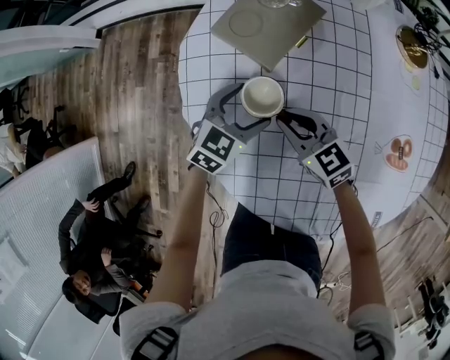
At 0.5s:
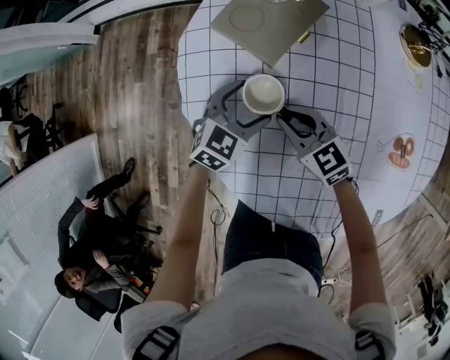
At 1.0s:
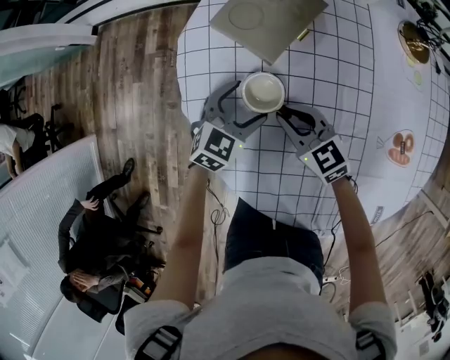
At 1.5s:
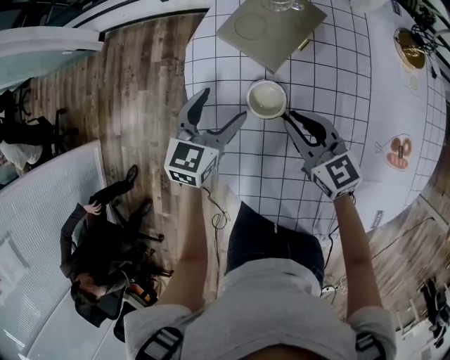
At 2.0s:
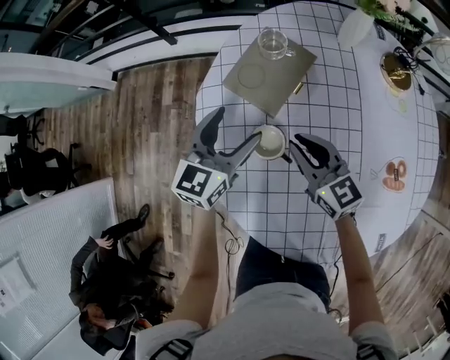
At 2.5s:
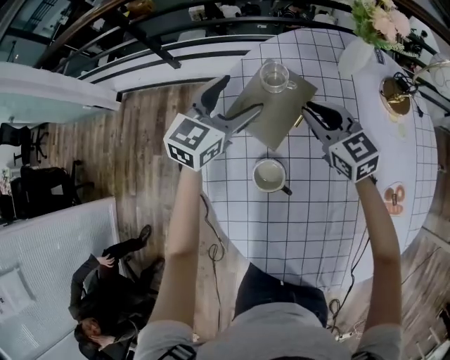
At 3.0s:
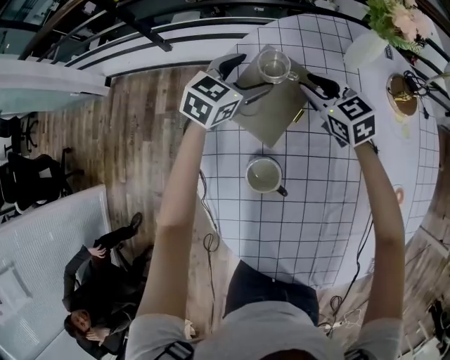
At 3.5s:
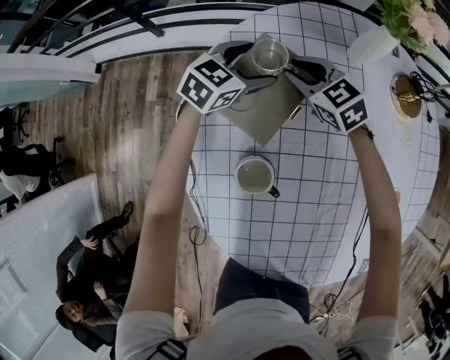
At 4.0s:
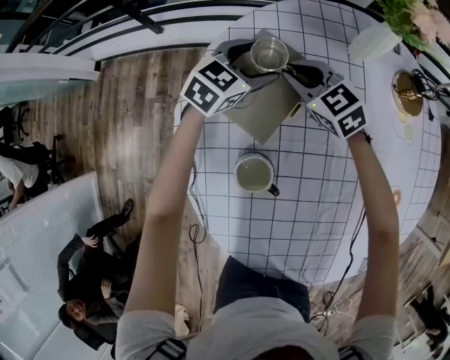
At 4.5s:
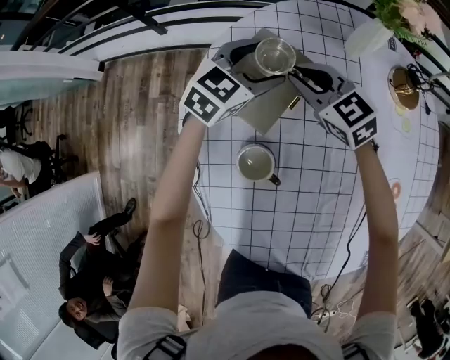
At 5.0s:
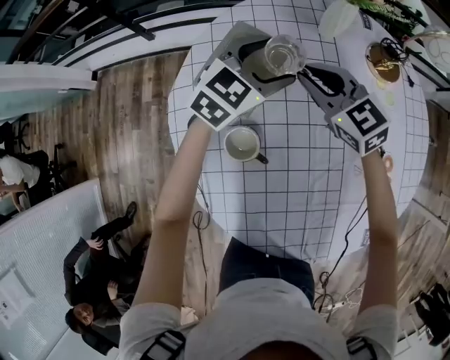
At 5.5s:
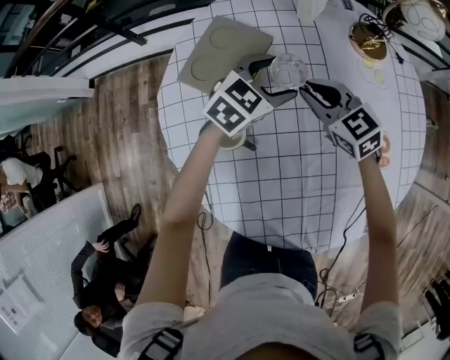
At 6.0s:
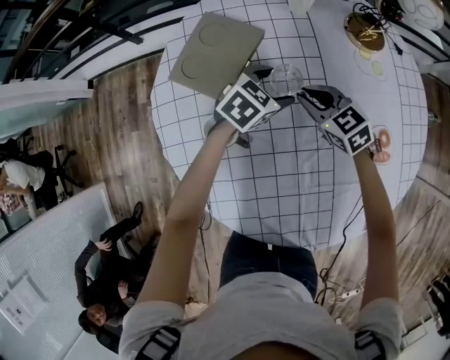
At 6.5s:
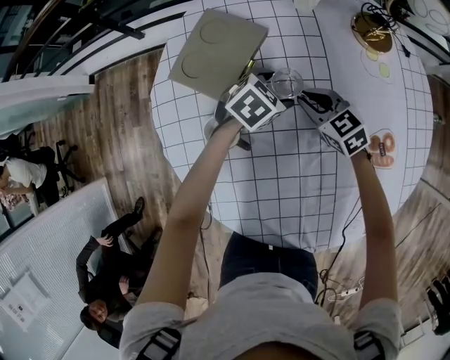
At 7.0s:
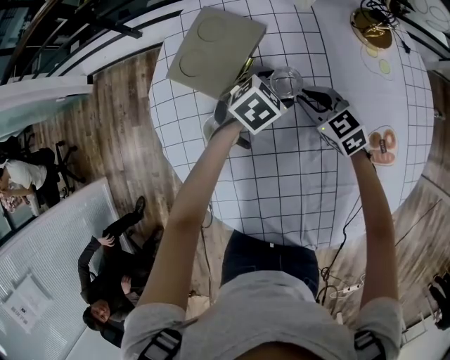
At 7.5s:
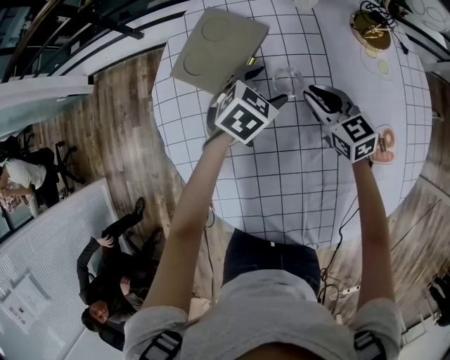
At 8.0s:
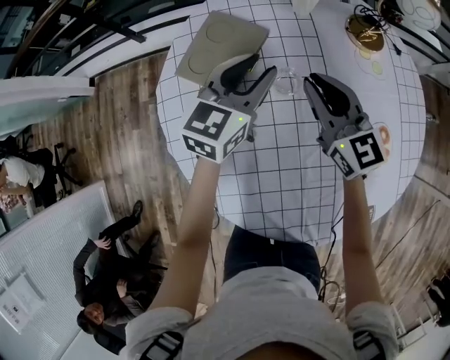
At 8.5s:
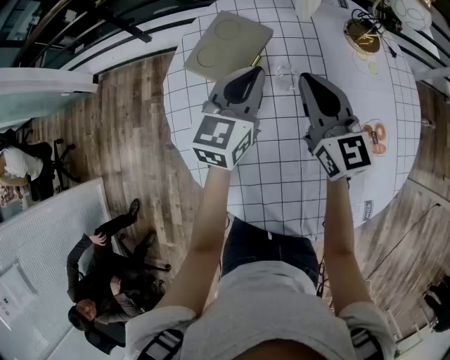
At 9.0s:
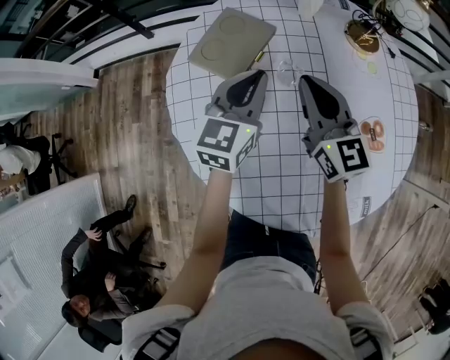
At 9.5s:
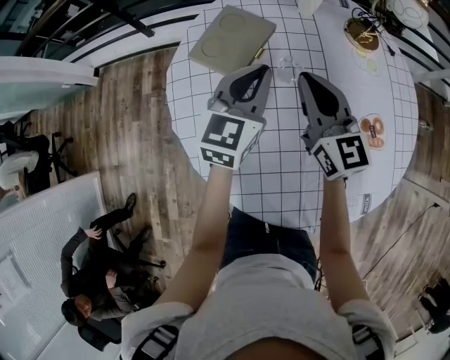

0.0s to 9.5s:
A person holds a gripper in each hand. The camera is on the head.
0.0s to 2.0s: The right gripper is displaced upward by some 10 cm. The left gripper is displaced upward and forward by some 15 cm, and turns by some 30 degrees.
2.0s to 4.0s: The right gripper is displaced forward by approximately 25 cm, and swivels roughly 30 degrees, while the left gripper is displaced forward and downward by about 25 cm, and rotates approximately 30 degrees.
4.0s to 5.5s: The left gripper travels to the right and backward by some 20 cm. Meanwhile the right gripper moves backward and to the right, roughly 20 cm.
5.5s to 7.5s: Both grippers travel together downward, approximately 5 cm.
7.5s to 9.5s: The two grippers go about 20 cm upward. The left gripper angles its fingers upward, by roughly 40 degrees, and closes; the right gripper changes its angle by approximately 30 degrees.

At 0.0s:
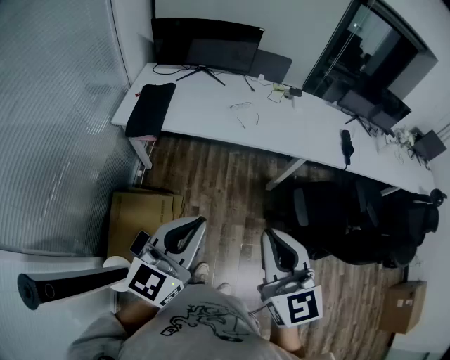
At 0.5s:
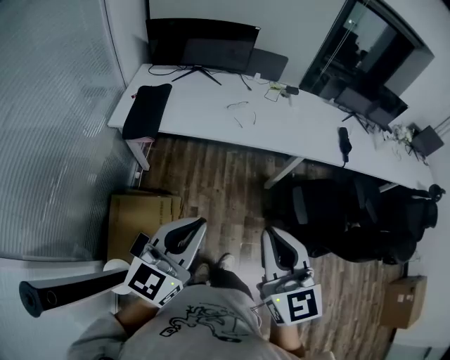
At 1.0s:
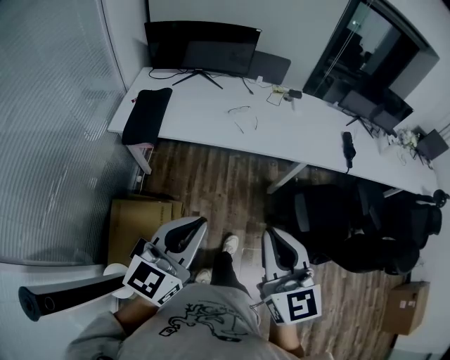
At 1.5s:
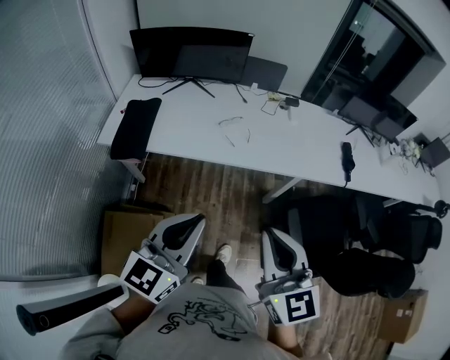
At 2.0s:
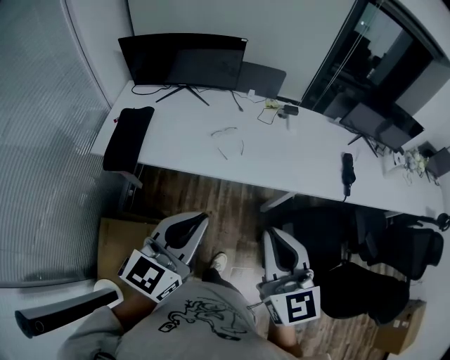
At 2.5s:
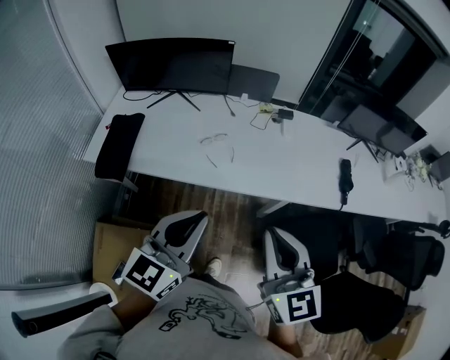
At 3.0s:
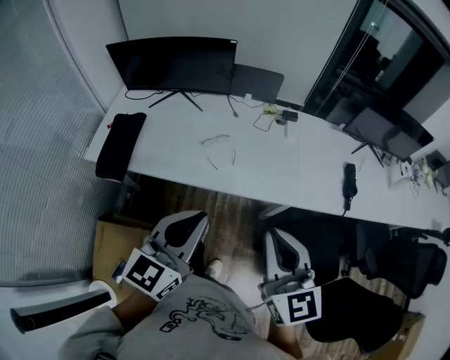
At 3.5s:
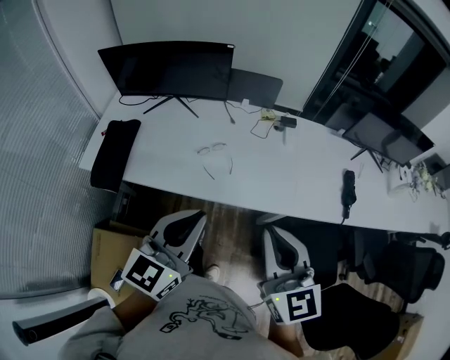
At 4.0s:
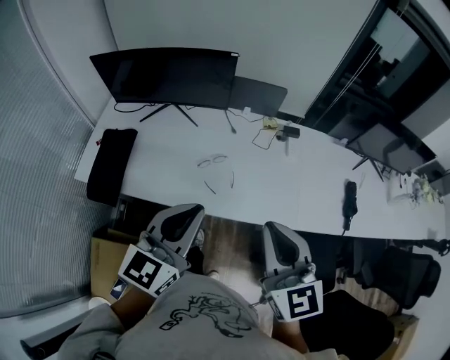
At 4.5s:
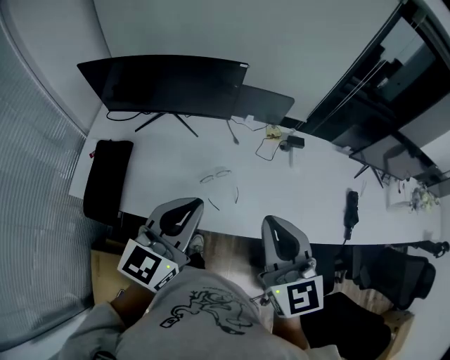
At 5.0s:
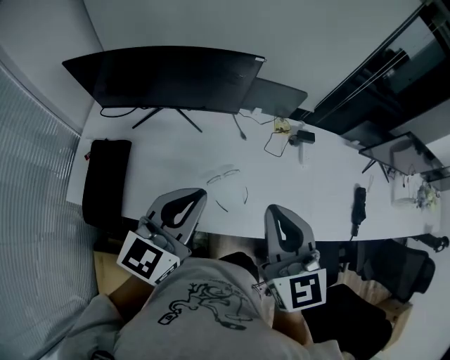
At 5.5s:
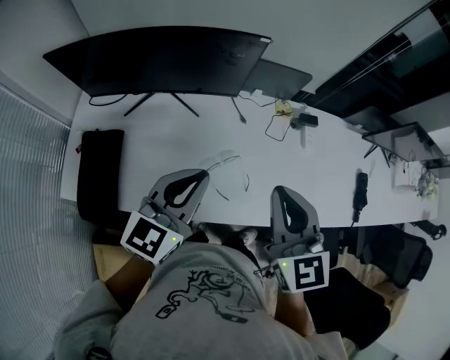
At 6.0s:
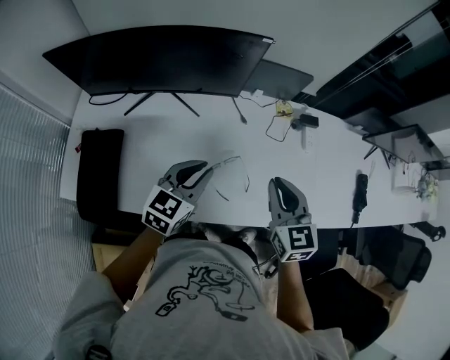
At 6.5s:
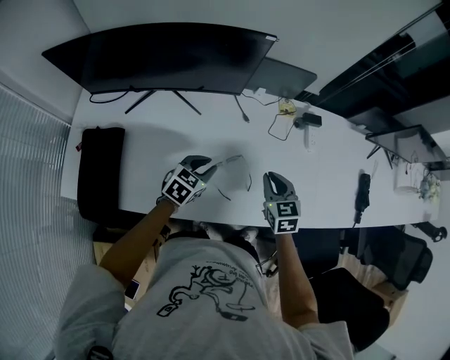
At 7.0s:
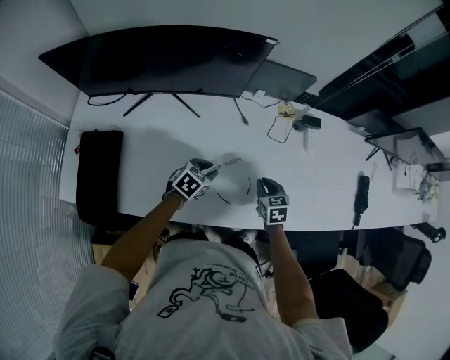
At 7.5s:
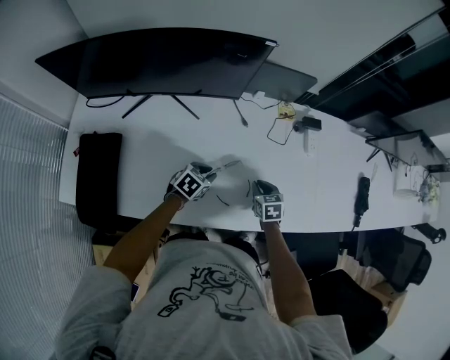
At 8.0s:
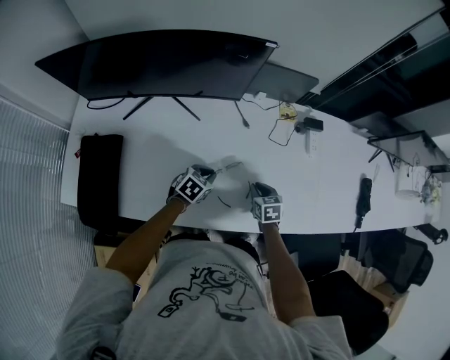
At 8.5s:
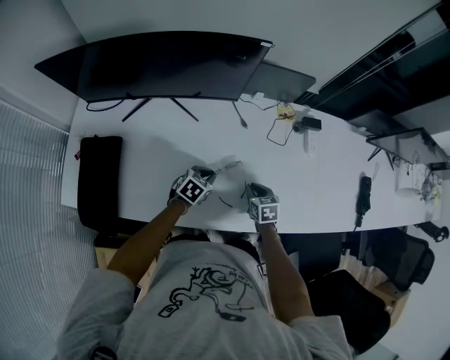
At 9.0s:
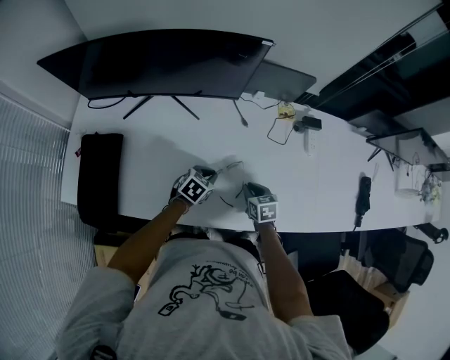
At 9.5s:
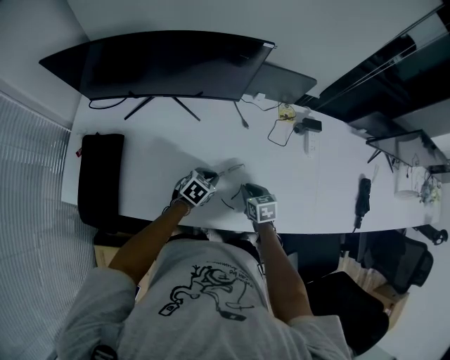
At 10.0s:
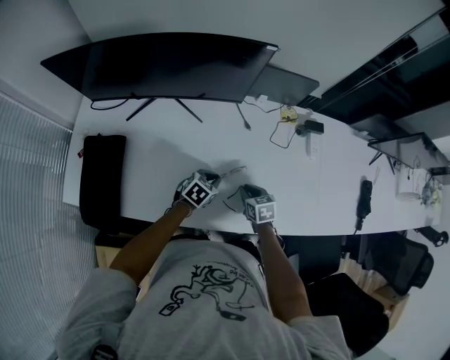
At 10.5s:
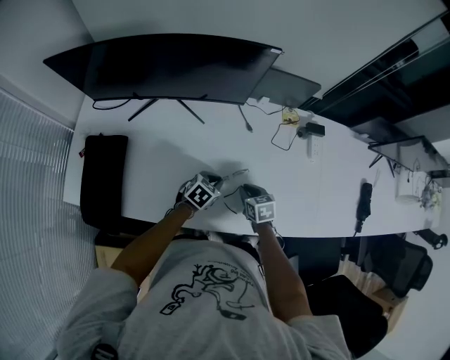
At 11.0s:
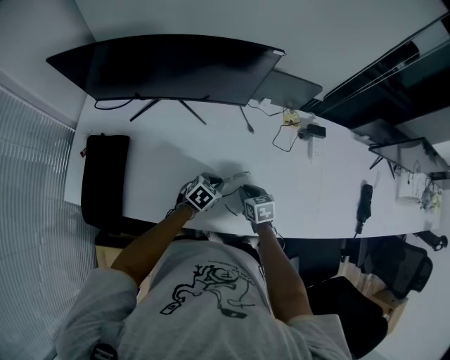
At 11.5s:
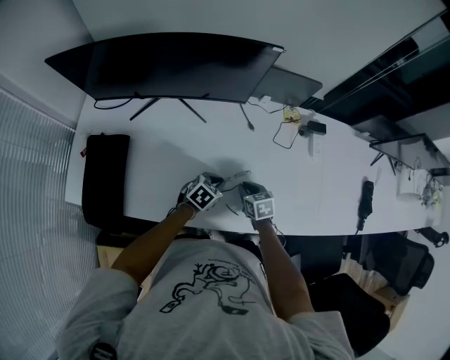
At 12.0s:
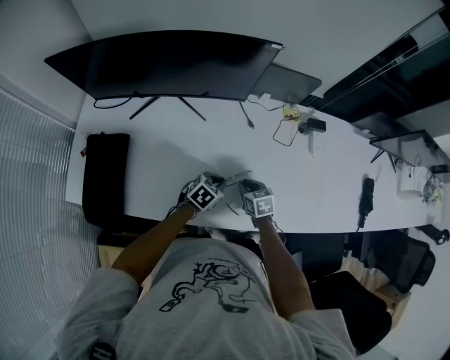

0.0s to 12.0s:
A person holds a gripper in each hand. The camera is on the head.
0.0s to 2.0s: Both grippers move forward, roughly 25 cm.
2.0s to 4.0s: The two grippers go approximately 25 cm forward.
4.0s to 6.0s: The left gripper travels forward, downward and to the left by about 35 cm, and changes its angle by some 20 degrees. The right gripper heads forward and downward, covering roughly 30 cm.
6.0s to 8.0s: Both grippers move downward, approximately 25 cm. The left gripper rotates some 30 degrees; the right gripper changes its angle by approximately 30 degrees.
8.0s to 10.0s: The right gripper moves to the left, some 5 cm.
10.0s to 12.0s: There are only small adjustments of the grippers.

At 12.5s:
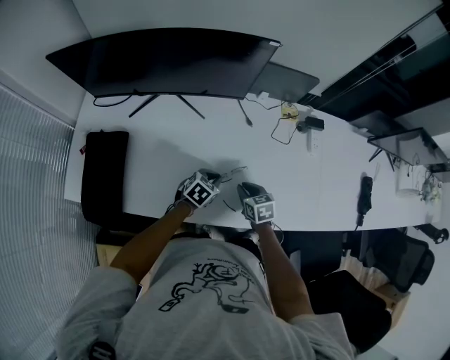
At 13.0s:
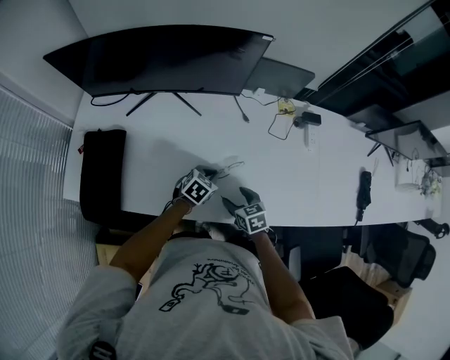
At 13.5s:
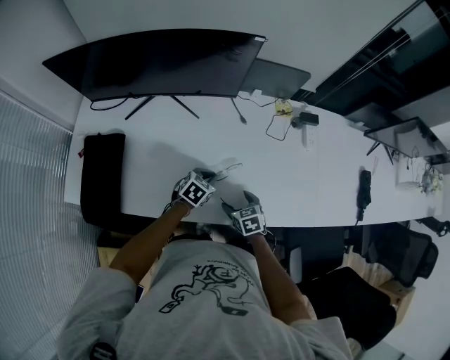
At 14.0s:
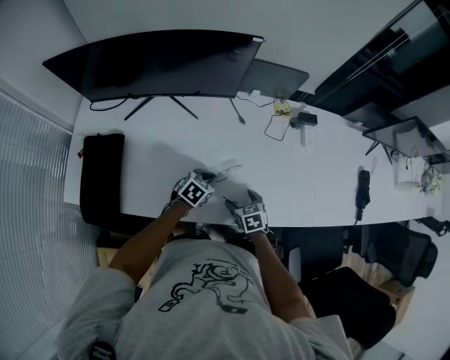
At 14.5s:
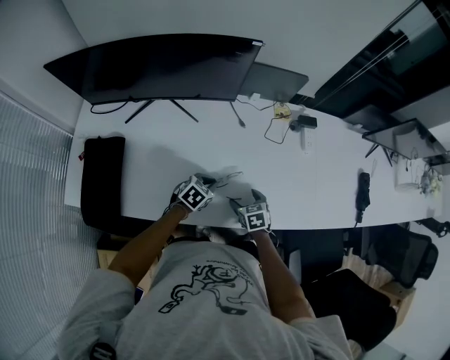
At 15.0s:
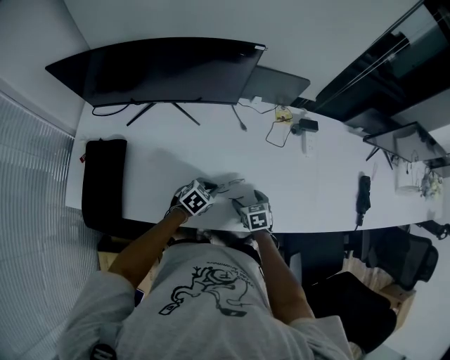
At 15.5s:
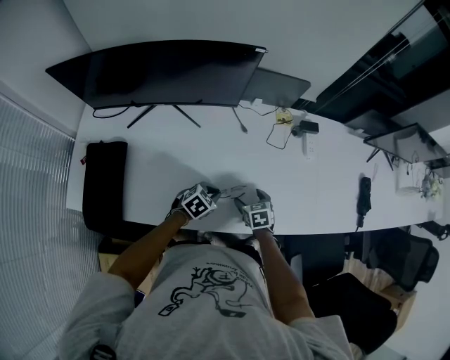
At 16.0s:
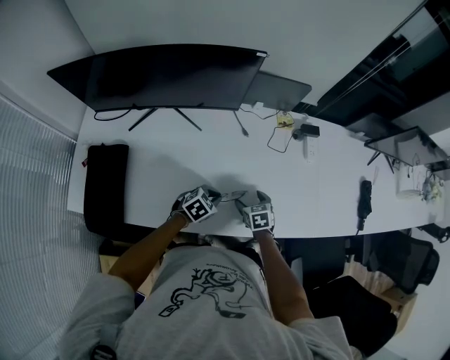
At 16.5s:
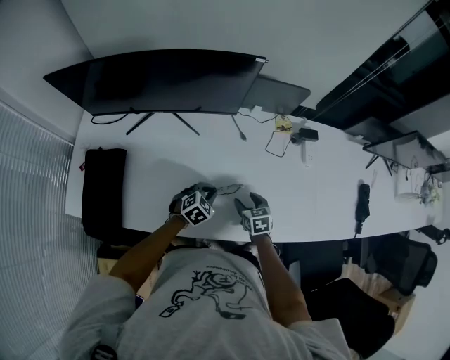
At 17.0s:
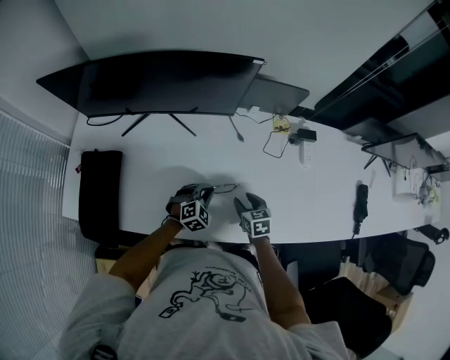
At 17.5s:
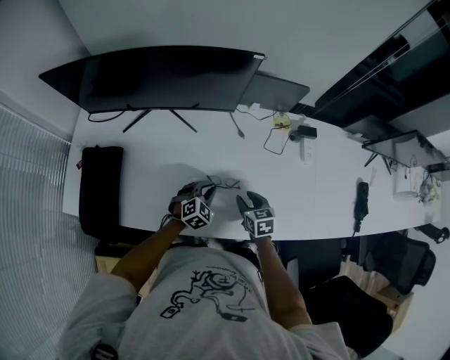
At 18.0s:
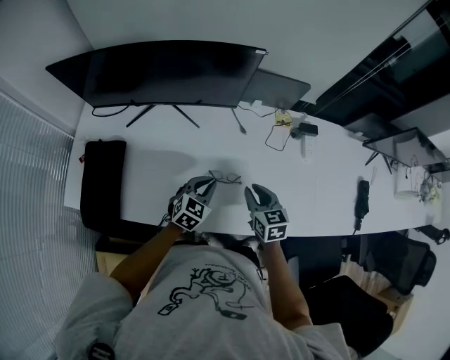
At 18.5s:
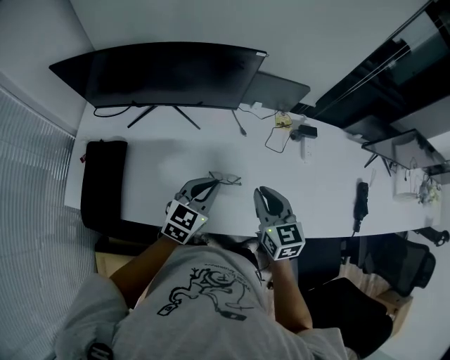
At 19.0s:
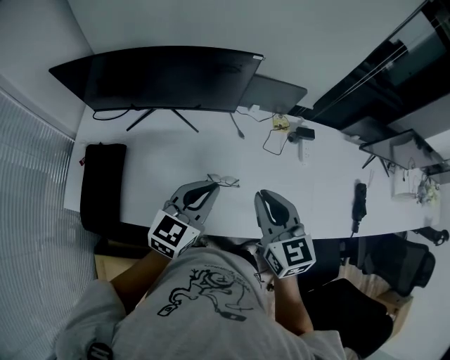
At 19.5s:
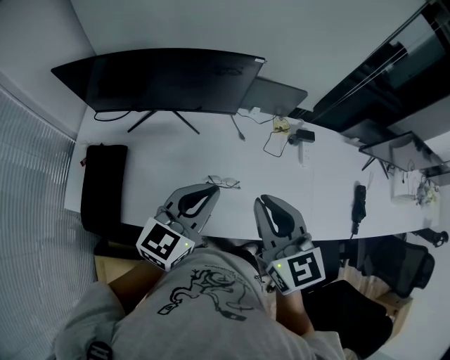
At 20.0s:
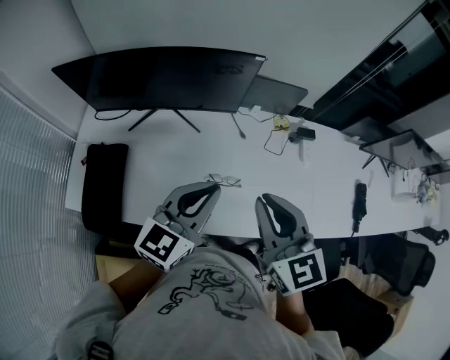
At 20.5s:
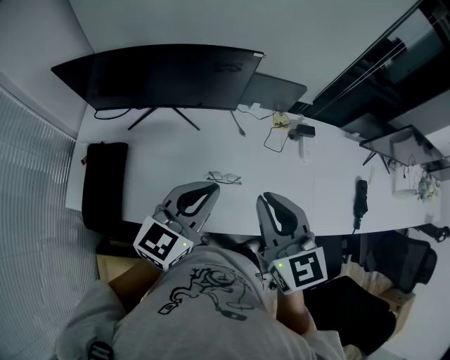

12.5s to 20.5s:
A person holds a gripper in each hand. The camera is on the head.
12.5s to 14.5s: The right gripper changes place by roughly 5 cm, and opens up.
14.5s to 16.5s: The right gripper changes place by roughly 5 cm.
16.5s to 18.5s: The two grippers go roughly 20 cm upward. The right gripper swivels some 20 degrees, and closes up; the left gripper swivels some 30 degrees.
18.5s to 20.5s: The grippers both shift upward by some 15 cm.
